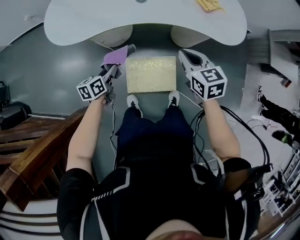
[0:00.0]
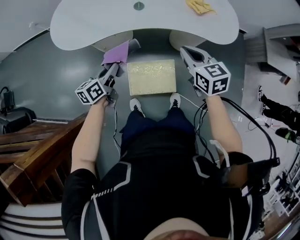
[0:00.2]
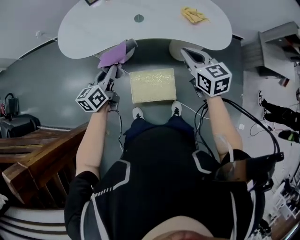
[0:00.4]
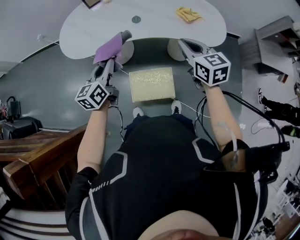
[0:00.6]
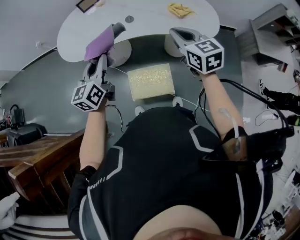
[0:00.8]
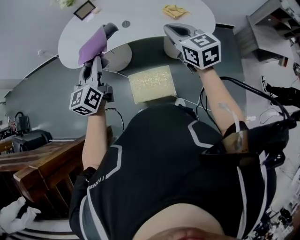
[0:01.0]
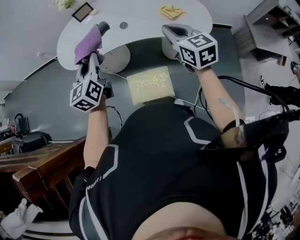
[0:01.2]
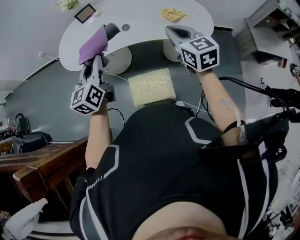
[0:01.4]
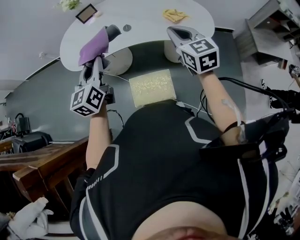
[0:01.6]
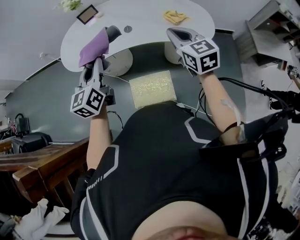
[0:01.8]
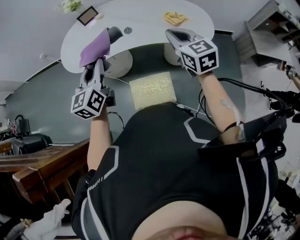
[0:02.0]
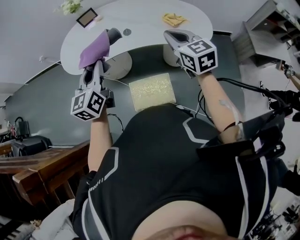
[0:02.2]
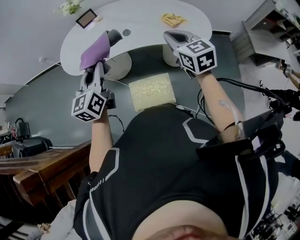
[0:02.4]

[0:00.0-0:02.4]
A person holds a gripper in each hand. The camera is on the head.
0:00.0 to 0:01.2: The left gripper shifts some 35 cm upward, and swivels roughly 40 degrees, while the right gripper shifts some 20 cm upward.
0:01.2 to 0:02.4: The grippers move only a little.

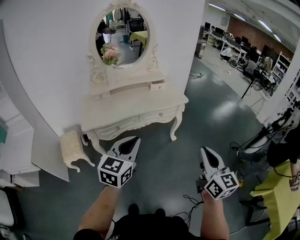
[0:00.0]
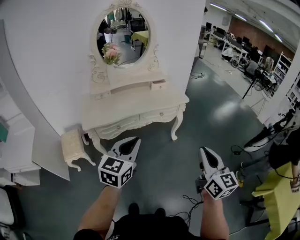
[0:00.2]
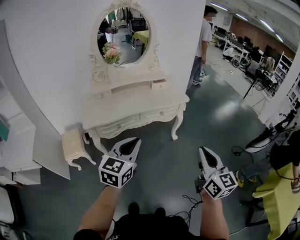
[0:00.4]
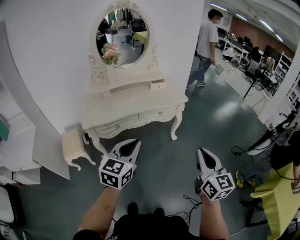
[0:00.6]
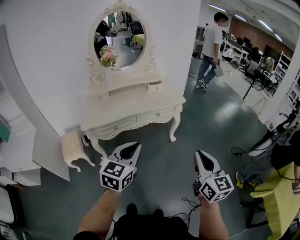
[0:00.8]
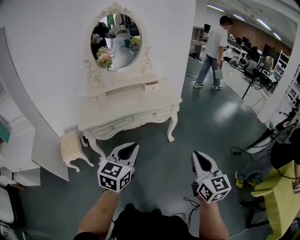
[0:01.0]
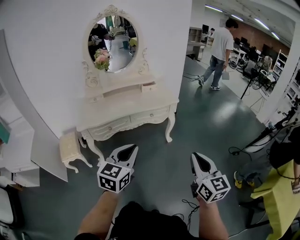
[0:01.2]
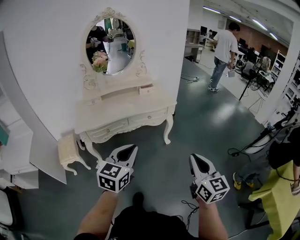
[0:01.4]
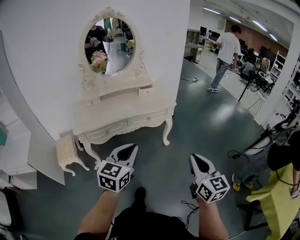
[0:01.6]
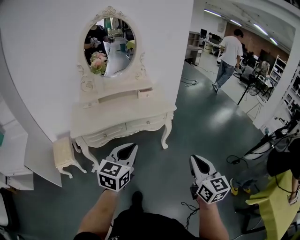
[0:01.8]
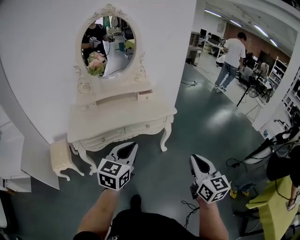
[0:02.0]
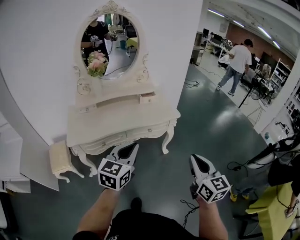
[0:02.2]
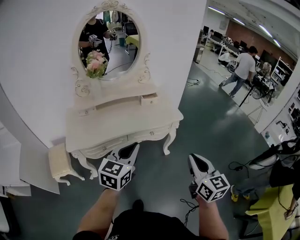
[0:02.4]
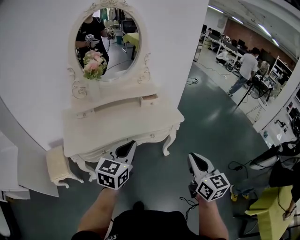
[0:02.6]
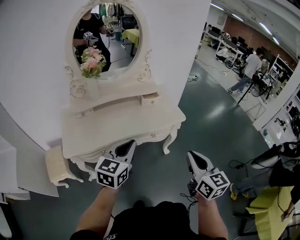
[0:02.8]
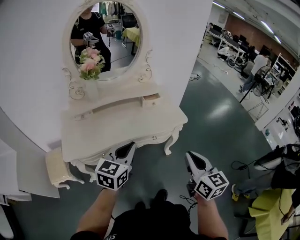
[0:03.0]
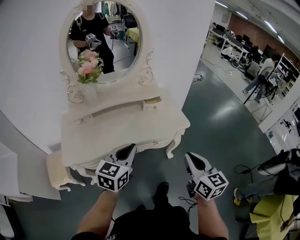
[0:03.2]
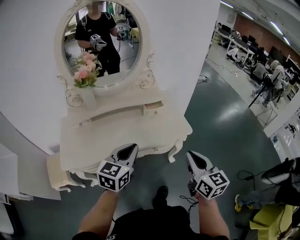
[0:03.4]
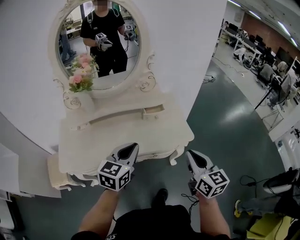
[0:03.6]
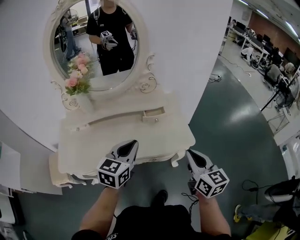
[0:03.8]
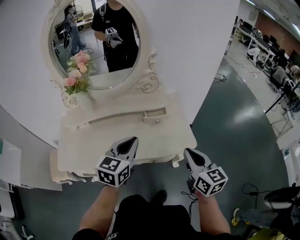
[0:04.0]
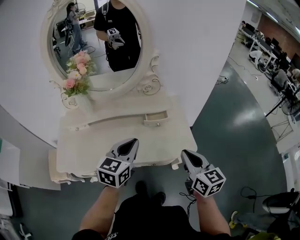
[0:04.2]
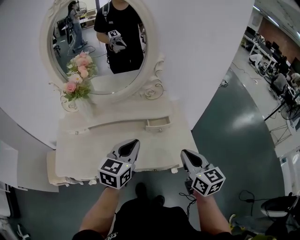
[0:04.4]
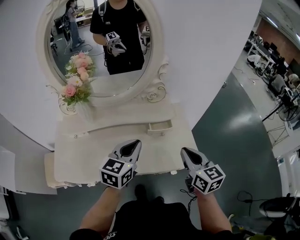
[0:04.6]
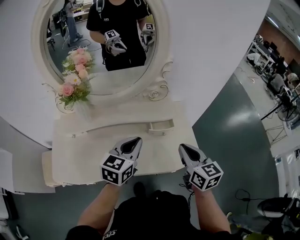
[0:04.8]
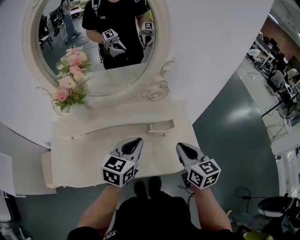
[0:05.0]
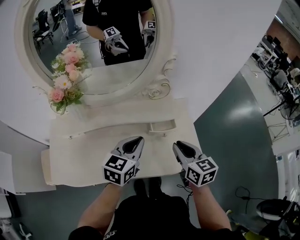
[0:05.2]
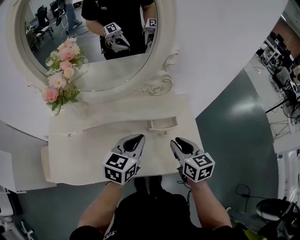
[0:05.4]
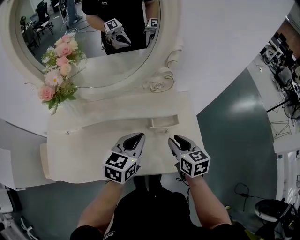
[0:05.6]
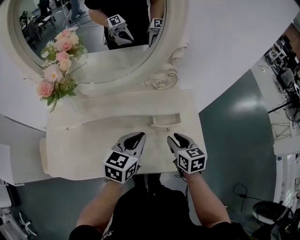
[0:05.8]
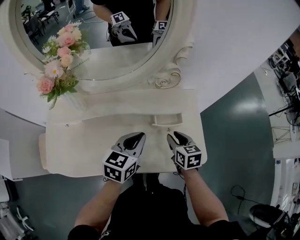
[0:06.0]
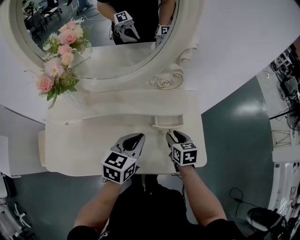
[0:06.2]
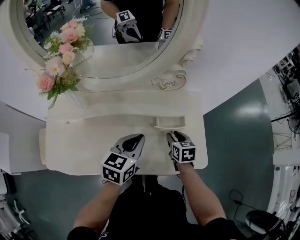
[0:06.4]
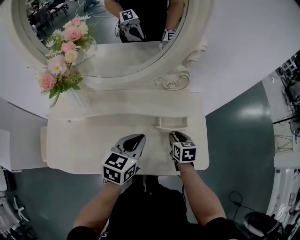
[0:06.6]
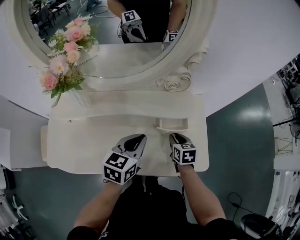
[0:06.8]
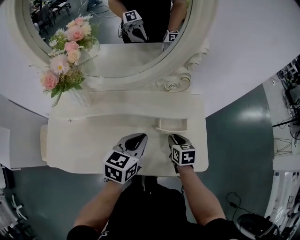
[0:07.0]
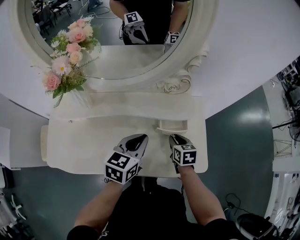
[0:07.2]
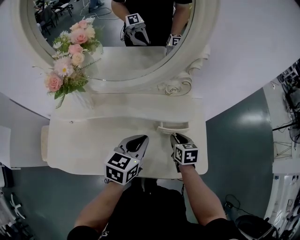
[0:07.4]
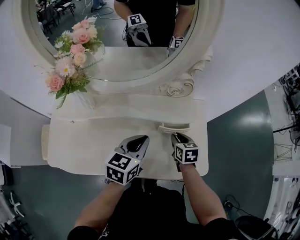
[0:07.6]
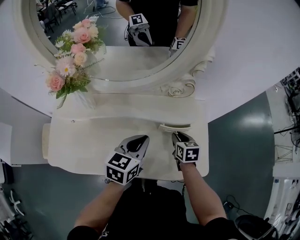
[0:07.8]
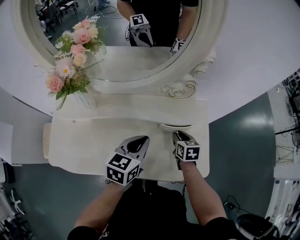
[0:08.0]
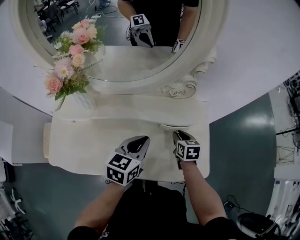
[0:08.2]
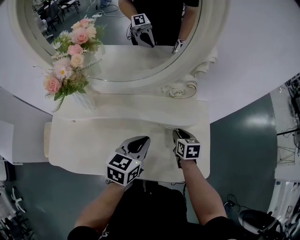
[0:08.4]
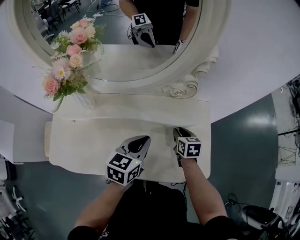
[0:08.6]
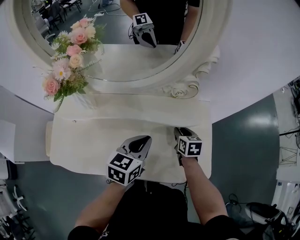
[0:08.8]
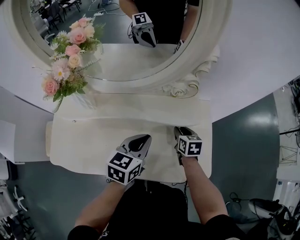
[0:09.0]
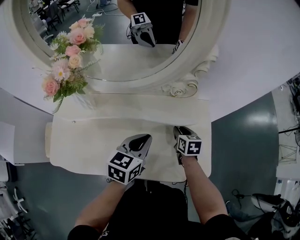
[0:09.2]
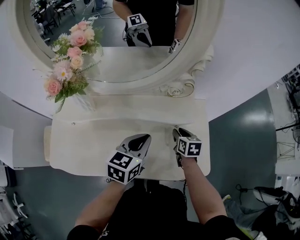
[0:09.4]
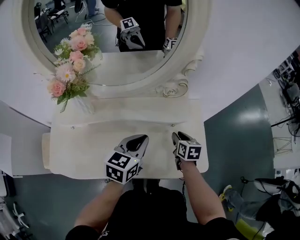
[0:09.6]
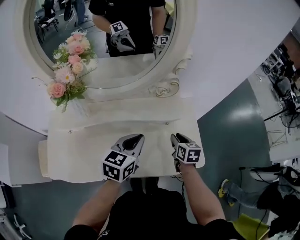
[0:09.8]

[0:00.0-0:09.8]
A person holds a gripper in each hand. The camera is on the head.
0:00.0 to 0:01.4: The two grippers go roughly 10 cm to the right.
0:01.4 to 0:02.8: Both grippers travel together forward, about 30 cm.
0:02.8 to 0:04.2: Both grippers move forward, approximately 30 cm.
0:04.2 to 0:05.6: The right gripper heads forward, downward and to the left, covering roughly 25 cm, and opens; the left gripper is displaced forward and downward by some 15 cm.
0:05.6 to 0:07.0: The right gripper travels downward by roughly 10 cm.
0:07.0 to 0:08.4: The right gripper travels forward by approximately 5 cm.
0:08.4 to 0:09.8: The right gripper heads backward and upward, covering roughly 10 cm.

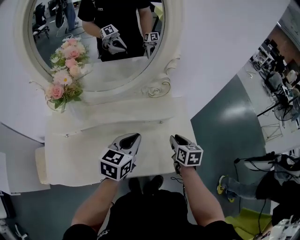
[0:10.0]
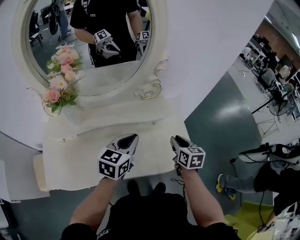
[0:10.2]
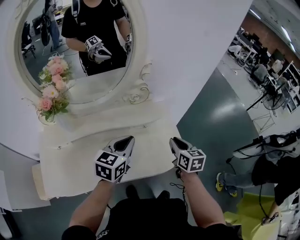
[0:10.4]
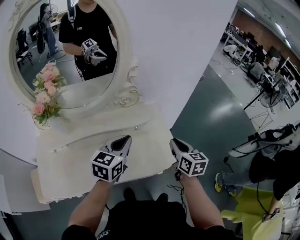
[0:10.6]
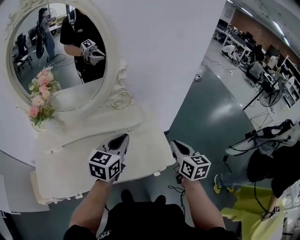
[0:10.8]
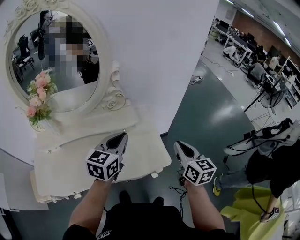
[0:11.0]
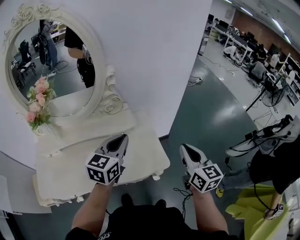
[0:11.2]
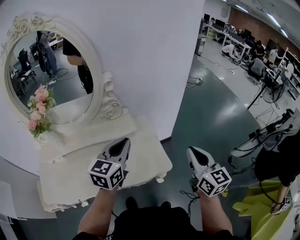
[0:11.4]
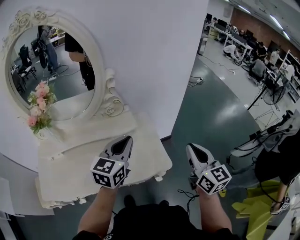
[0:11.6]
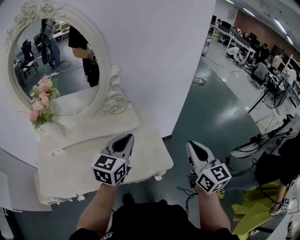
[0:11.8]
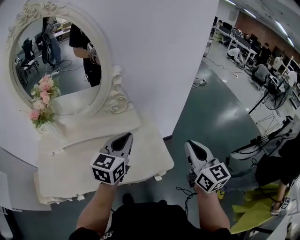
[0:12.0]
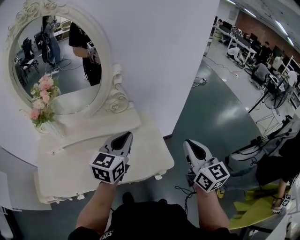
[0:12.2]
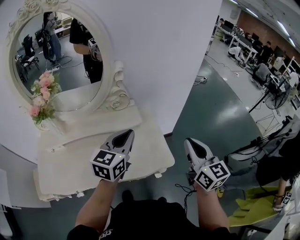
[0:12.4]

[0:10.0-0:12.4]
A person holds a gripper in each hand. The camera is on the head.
0:10.0 to 0:11.2: The grippers both shift to the right and upward by approximately 25 cm. The right gripper changes its angle by approximately 30 degrees, and closes.
0:11.2 to 0:12.4: The grippers stay close to where they were, moving slightly.

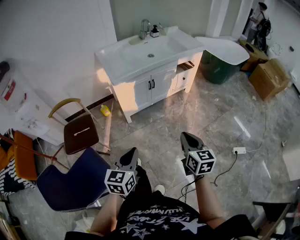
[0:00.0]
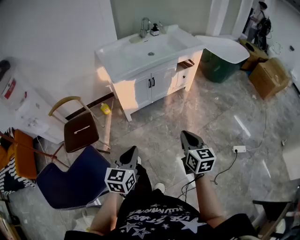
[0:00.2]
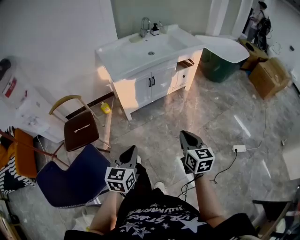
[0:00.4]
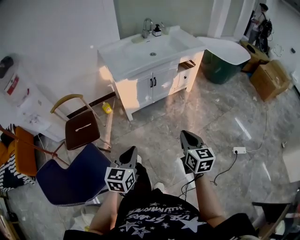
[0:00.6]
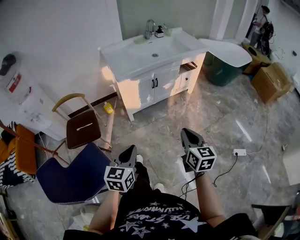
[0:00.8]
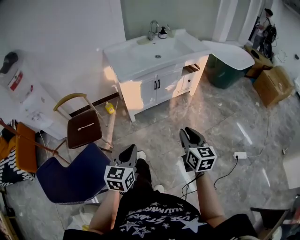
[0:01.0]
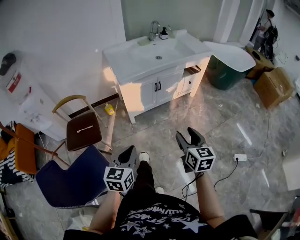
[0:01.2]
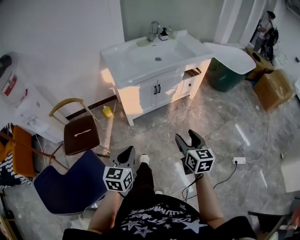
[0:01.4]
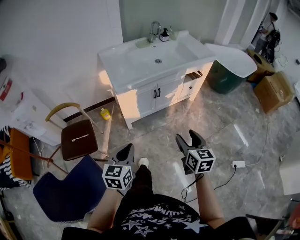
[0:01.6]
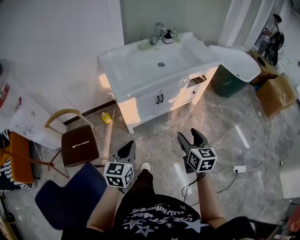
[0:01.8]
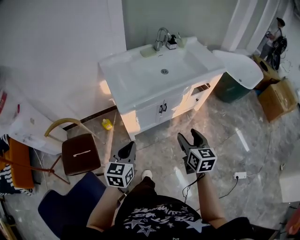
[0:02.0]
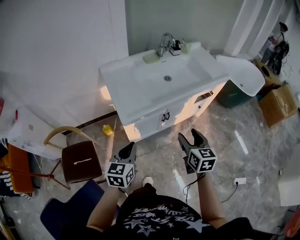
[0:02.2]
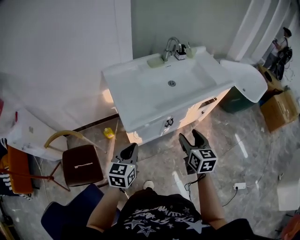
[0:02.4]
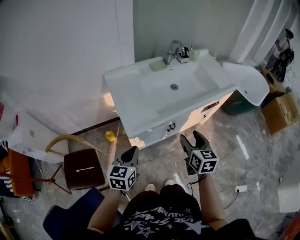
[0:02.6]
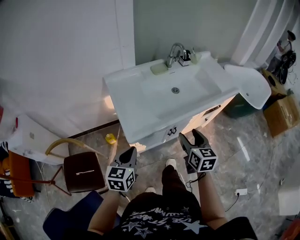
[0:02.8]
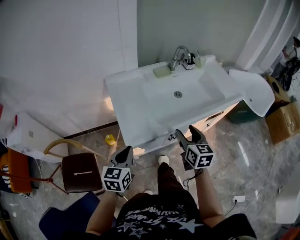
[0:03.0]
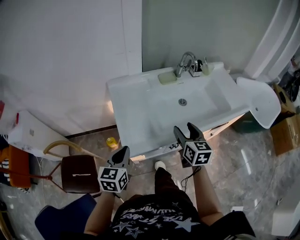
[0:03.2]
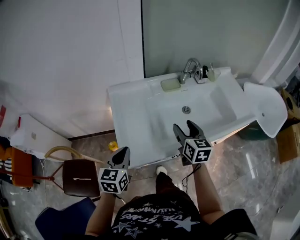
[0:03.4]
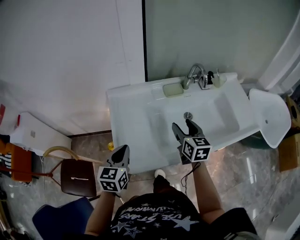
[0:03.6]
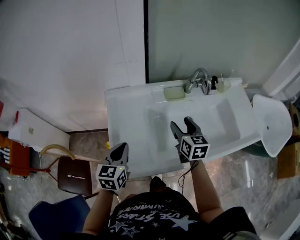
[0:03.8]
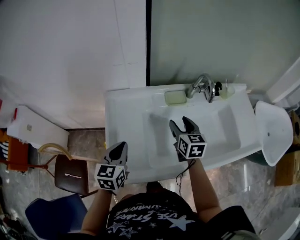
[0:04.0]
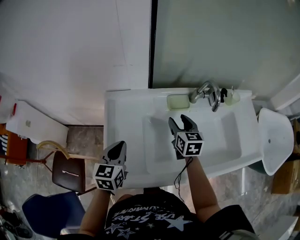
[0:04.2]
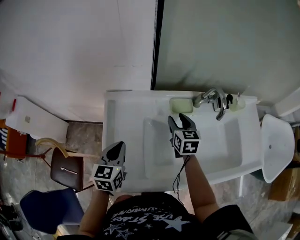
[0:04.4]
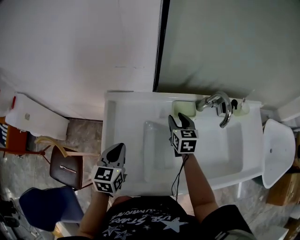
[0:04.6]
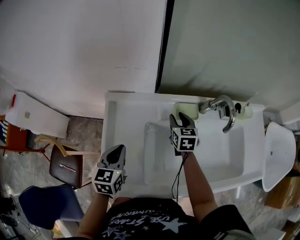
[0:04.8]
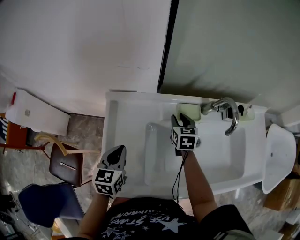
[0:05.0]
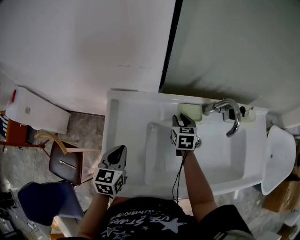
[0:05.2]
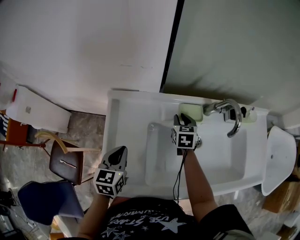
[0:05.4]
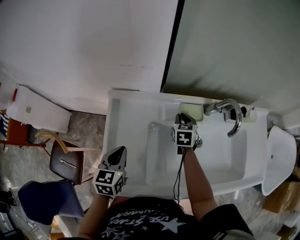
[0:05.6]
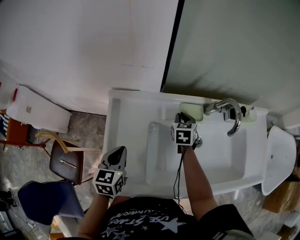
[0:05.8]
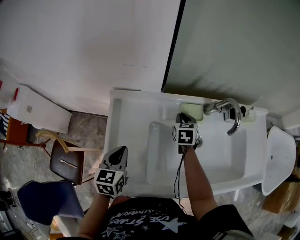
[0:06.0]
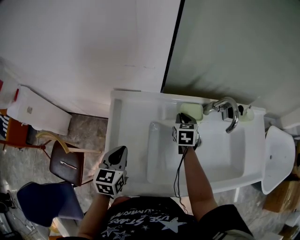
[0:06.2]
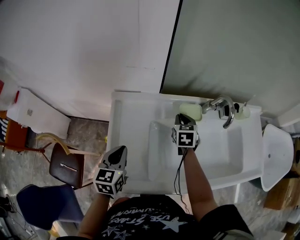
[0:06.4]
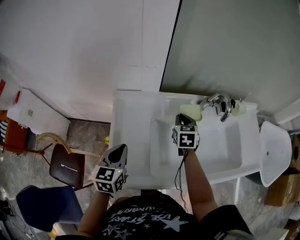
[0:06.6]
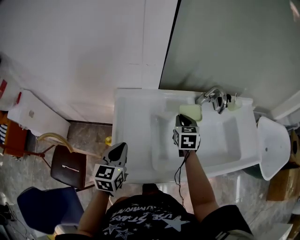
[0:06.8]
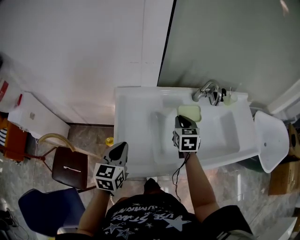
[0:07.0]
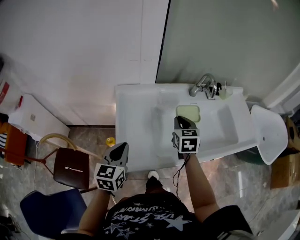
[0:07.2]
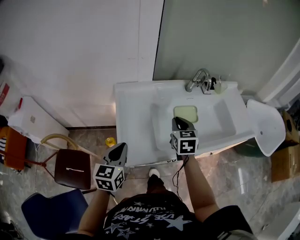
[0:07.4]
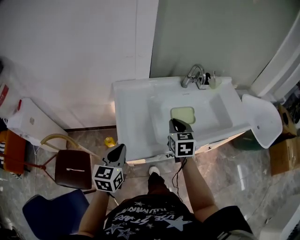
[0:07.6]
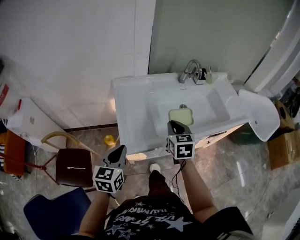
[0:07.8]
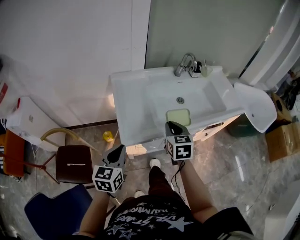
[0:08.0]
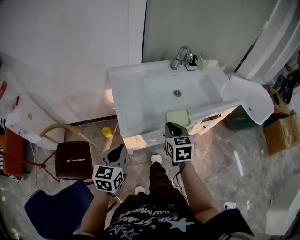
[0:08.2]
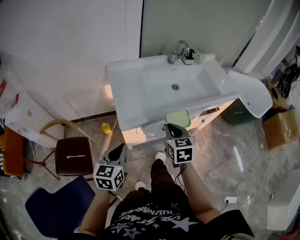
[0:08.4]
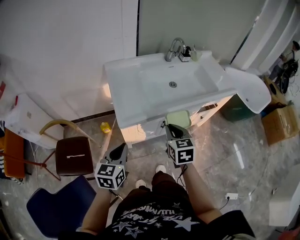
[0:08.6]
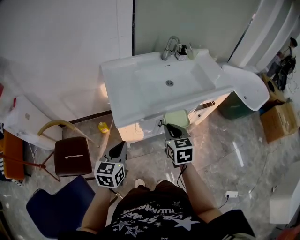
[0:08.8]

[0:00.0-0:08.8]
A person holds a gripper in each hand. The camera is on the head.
0:00.0 to 0:01.4: The grippers both shift forward by about 5 cm. The right gripper opens up.
0:01.4 to 0:03.0: The two grippers travel together, forward, about 50 cm.
0:03.0 to 0:04.4: Both grippers move forward, approximately 35 cm. The right gripper turns by approximately 20 degrees; the left gripper turns by about 20 degrees.
0:04.4 to 0:05.8: The right gripper is displaced downward and forward by roughly 10 cm, swivels about 20 degrees, and closes up.
0:05.8 to 0:07.4: The right gripper travels backward and upward by about 30 cm, while the left gripper shifts approximately 20 cm backward and upward.
0:07.4 to 0:08.8: Both grippers move backward, about 25 cm.
